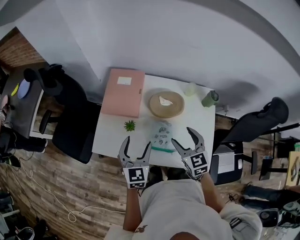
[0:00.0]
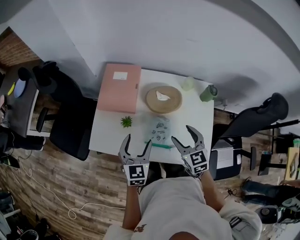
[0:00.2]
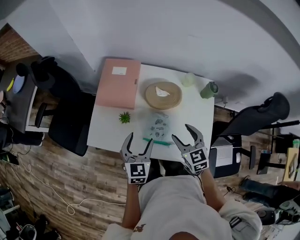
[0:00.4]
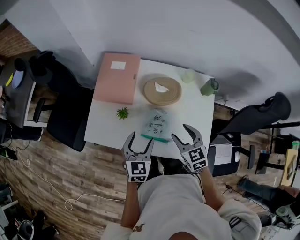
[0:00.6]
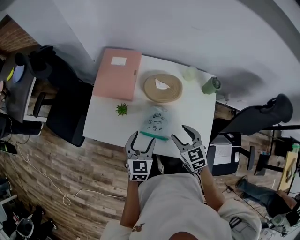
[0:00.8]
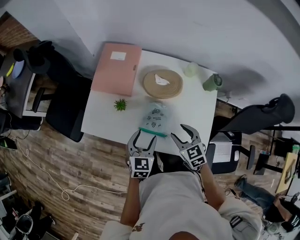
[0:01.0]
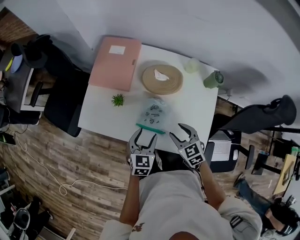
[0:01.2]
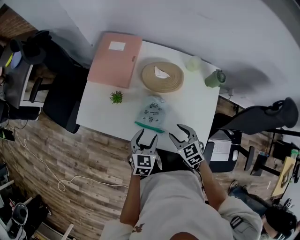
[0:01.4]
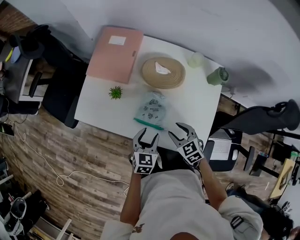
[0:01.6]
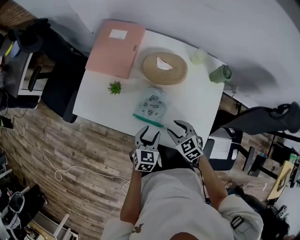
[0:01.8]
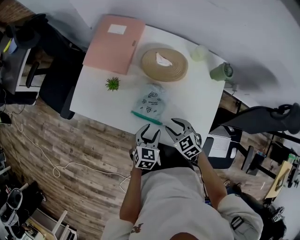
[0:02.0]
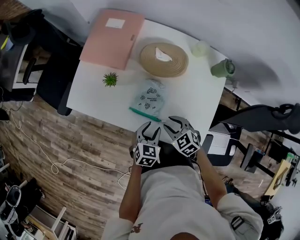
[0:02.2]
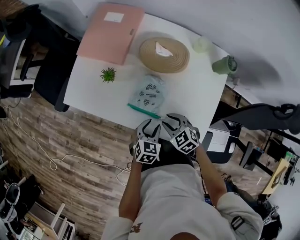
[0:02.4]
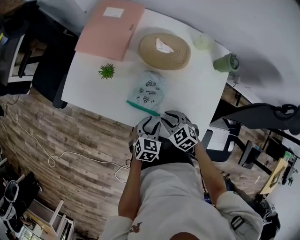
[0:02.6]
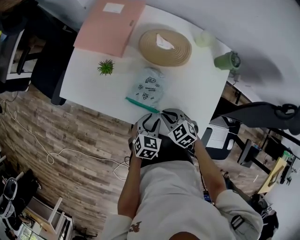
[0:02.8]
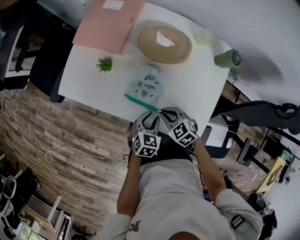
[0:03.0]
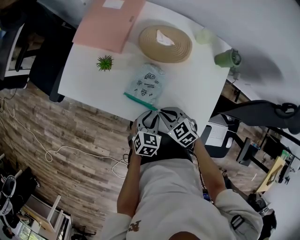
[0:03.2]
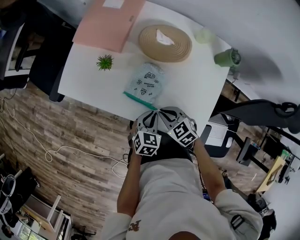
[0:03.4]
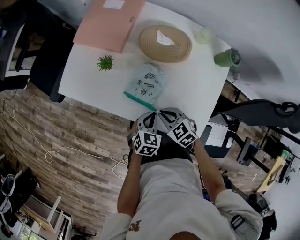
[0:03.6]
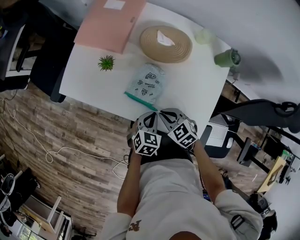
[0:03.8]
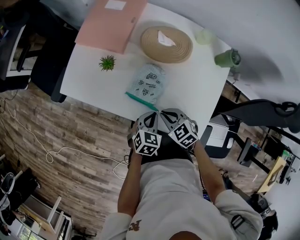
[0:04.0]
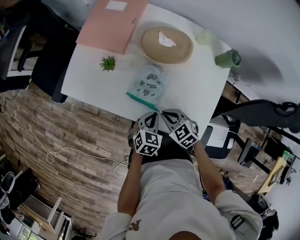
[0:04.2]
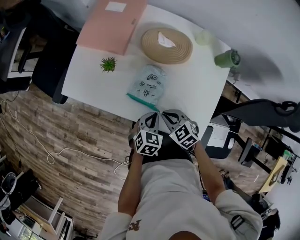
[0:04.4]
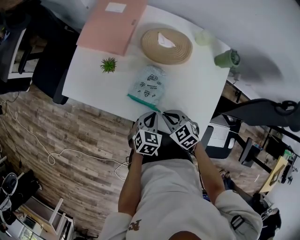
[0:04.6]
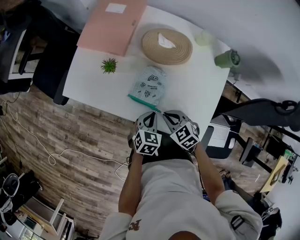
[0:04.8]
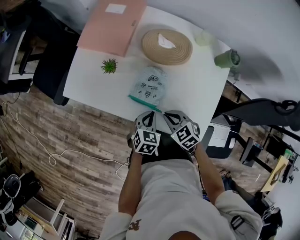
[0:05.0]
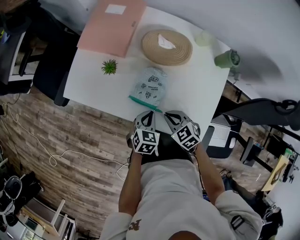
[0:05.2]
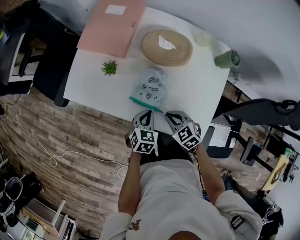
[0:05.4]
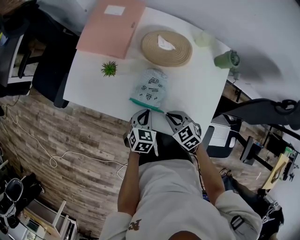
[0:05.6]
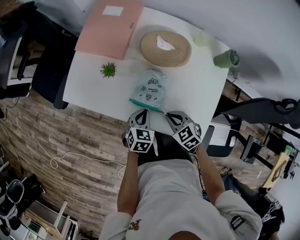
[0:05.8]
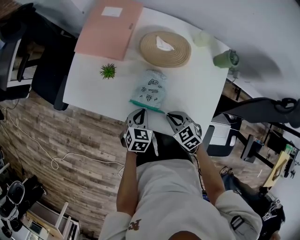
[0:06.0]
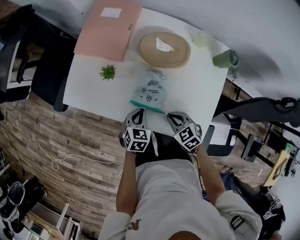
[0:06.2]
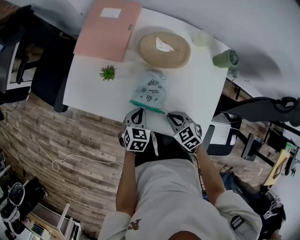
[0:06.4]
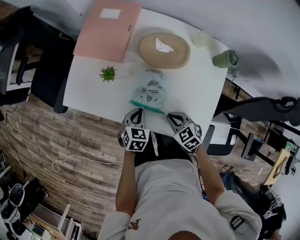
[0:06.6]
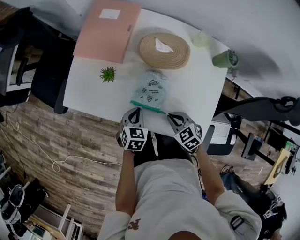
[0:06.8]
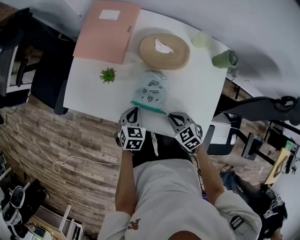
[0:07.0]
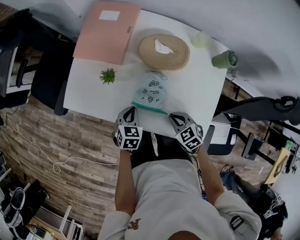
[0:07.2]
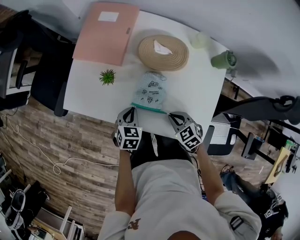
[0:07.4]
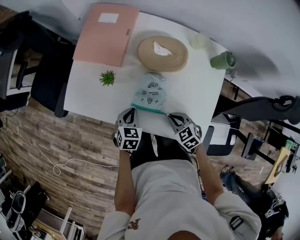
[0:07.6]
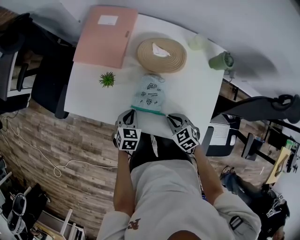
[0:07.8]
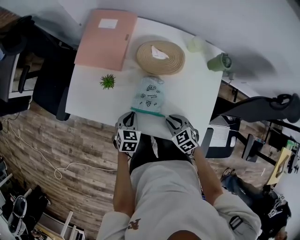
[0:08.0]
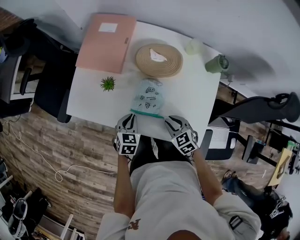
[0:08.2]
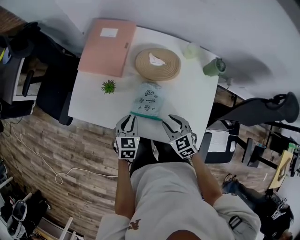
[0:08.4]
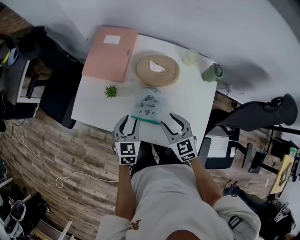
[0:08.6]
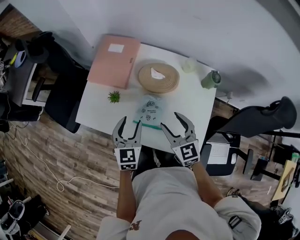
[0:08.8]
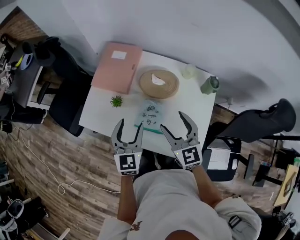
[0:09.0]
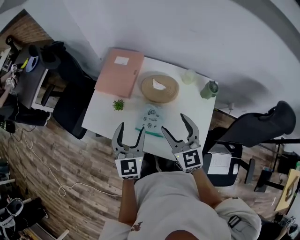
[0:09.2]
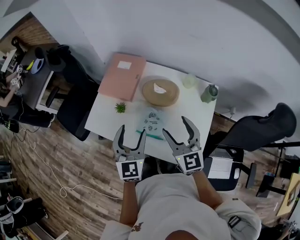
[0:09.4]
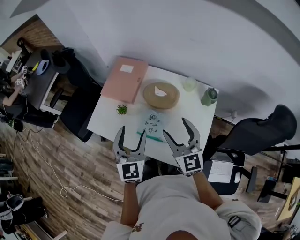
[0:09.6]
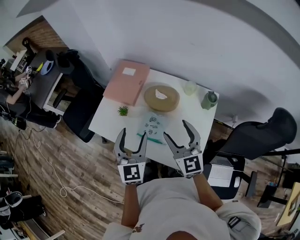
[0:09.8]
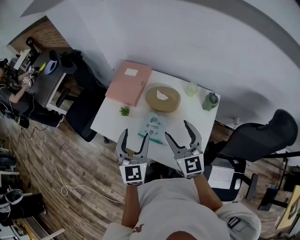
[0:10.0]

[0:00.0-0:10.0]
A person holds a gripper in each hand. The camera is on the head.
0:00.0 to 0:01.4: The left gripper shifts roughly 20 cm downward, to the right and backward, while the right gripper shifts approximately 15 cm downward and backward, and swivels about 30 degrees.
0:01.4 to 0:02.8: The right gripper moves downward, approximately 10 cm, rotates approximately 20 degrees, and closes its fingers, while the left gripper is displaced downward and to the right by approximately 10 cm.
0:02.8 to 0:04.2: The left gripper closes.
0:04.2 to 0:05.8: The left gripper moves about 5 cm.
0:05.8 to 0:07.2: The left gripper moves to the left, roughly 5 cm.
0:07.2 to 0:08.6: Both grippers travel together upward, approximately 10 cm. The right gripper rotates about 30 degrees, and opens up, while the left gripper opens.
0:08.6 to 0:10.0: Both grippers travel together upward, approximately 20 cm. The right gripper rotates roughly 30 degrees, and opens. The left gripper rotates approximately 30 degrees, and opens its fingers.

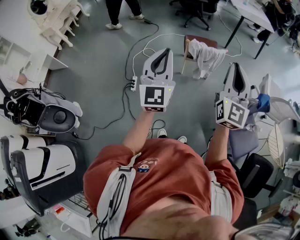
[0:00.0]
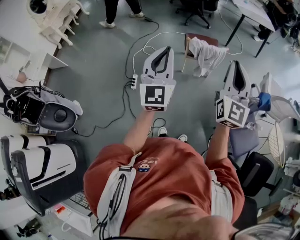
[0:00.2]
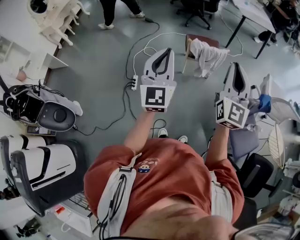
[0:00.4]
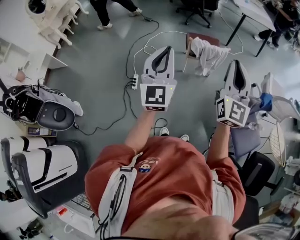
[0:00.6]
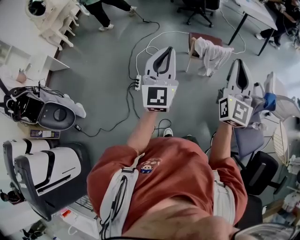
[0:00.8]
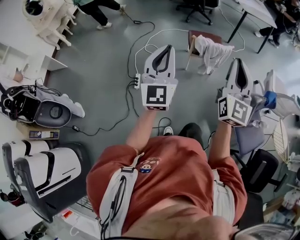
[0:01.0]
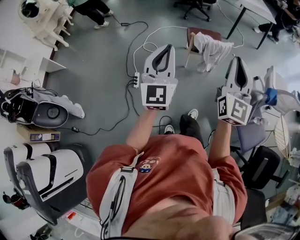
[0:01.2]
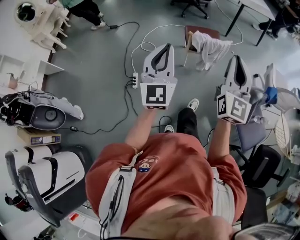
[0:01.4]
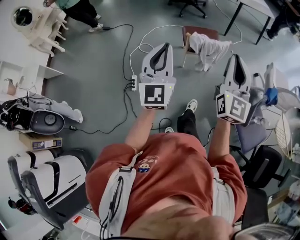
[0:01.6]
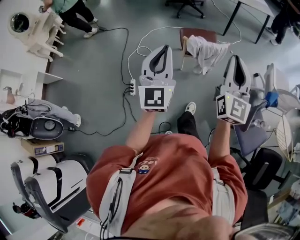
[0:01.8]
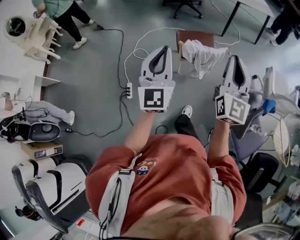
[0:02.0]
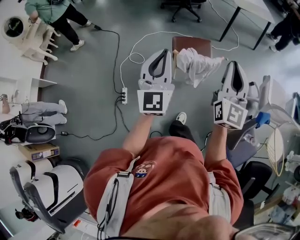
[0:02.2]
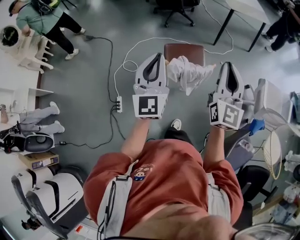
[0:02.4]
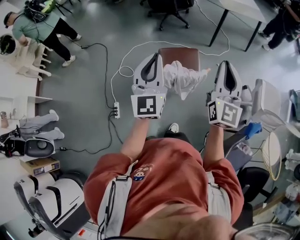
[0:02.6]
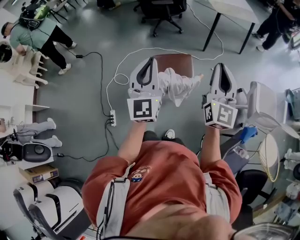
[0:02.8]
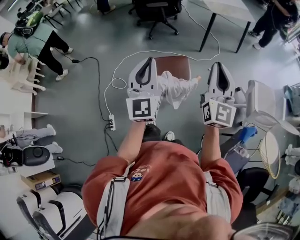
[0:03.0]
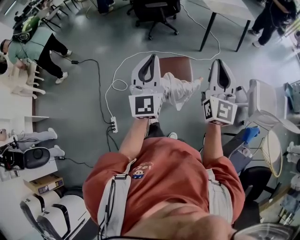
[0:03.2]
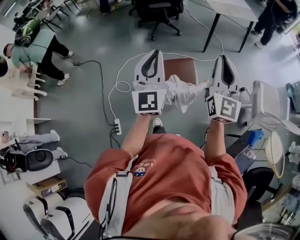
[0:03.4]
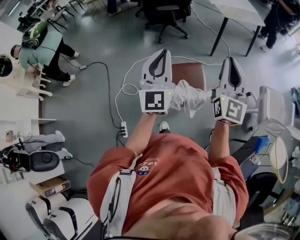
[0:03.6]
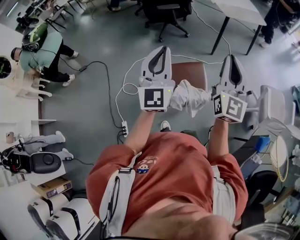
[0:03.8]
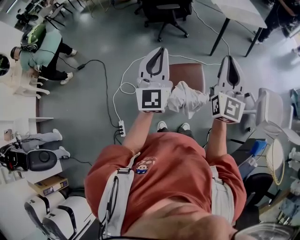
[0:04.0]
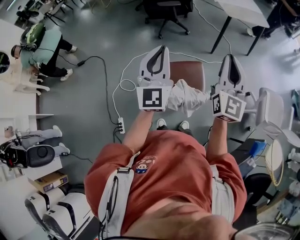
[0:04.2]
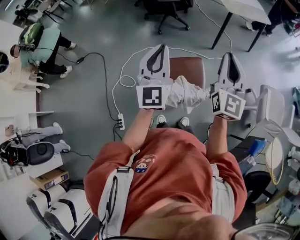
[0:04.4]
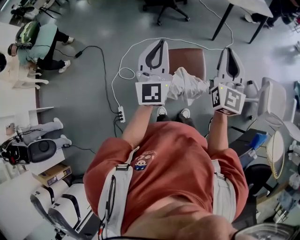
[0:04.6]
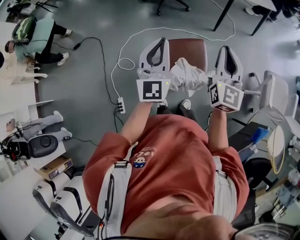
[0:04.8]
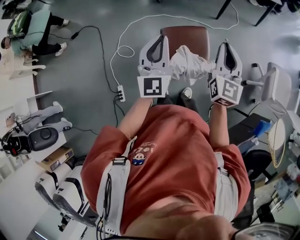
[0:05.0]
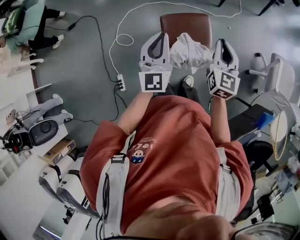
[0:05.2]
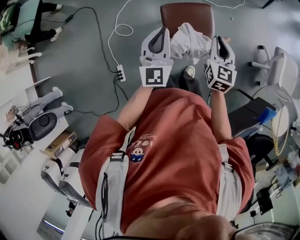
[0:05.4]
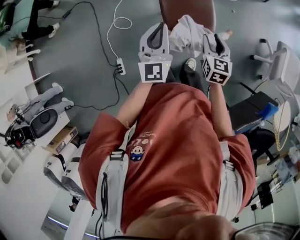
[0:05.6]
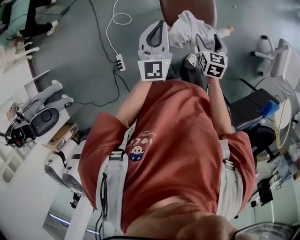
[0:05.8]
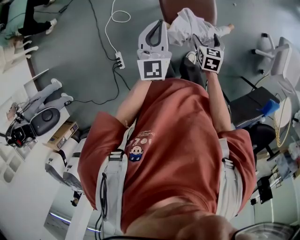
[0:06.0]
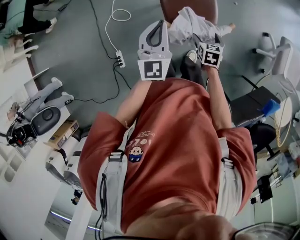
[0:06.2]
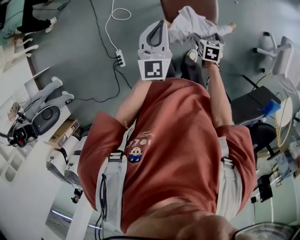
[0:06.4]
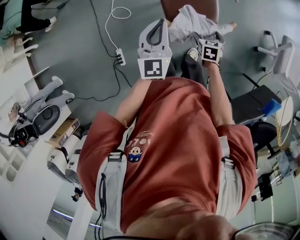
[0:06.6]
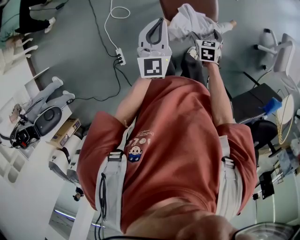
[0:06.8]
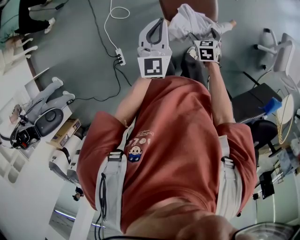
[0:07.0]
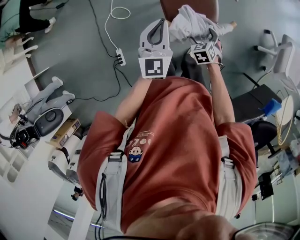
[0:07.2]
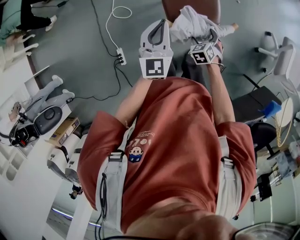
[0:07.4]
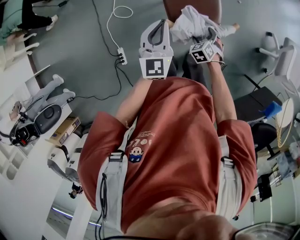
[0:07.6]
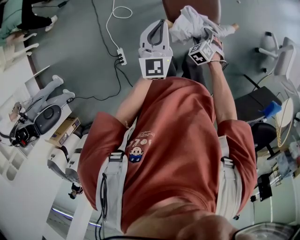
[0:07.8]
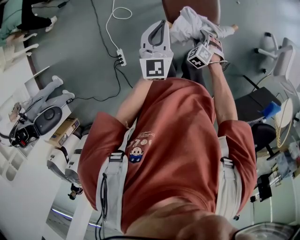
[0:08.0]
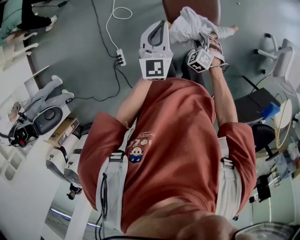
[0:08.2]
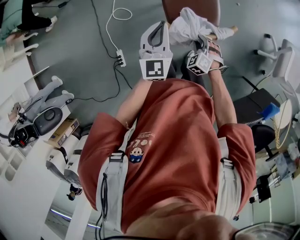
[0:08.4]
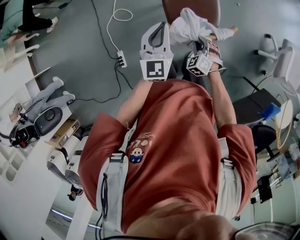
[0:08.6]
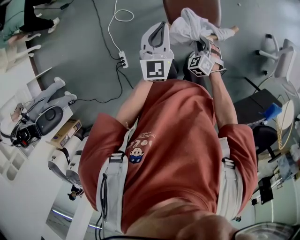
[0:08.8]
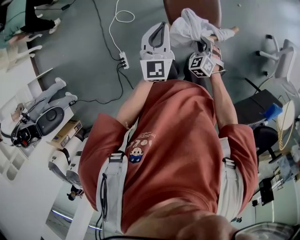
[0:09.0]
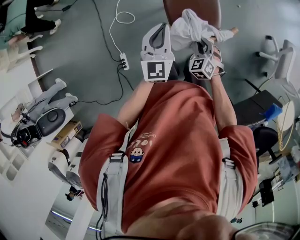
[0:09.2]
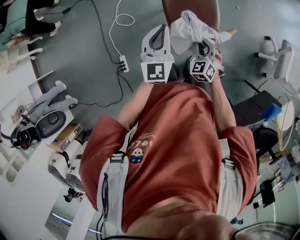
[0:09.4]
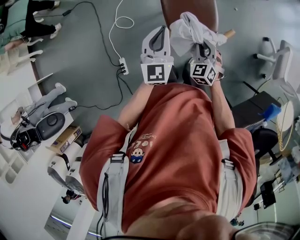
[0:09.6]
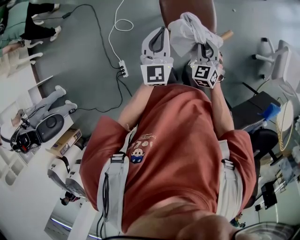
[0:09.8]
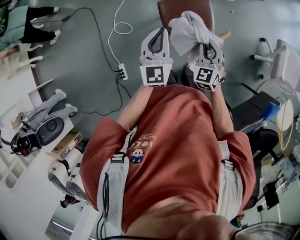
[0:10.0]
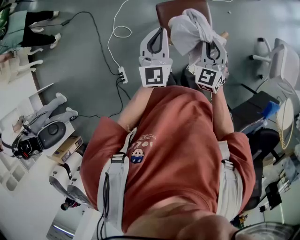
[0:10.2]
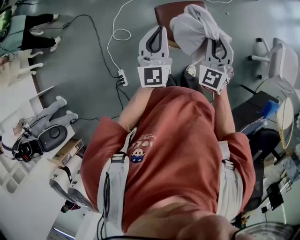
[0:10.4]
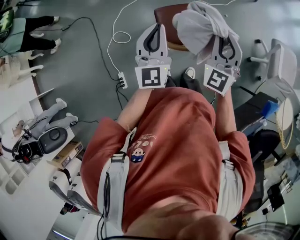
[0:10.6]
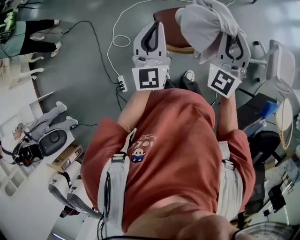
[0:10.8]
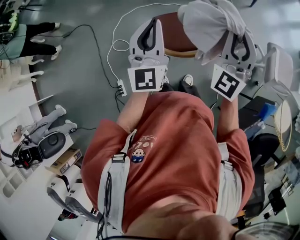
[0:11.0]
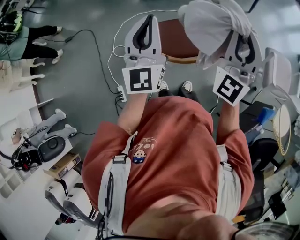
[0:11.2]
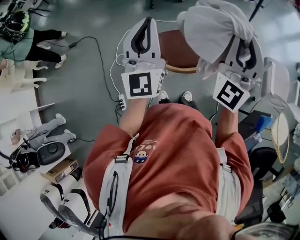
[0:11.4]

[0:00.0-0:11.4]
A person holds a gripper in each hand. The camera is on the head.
0:00.0 to 0:01.4: The right gripper travels to the left and forward by about 10 cm, while the left gripper moves forward and to the left, roughly 10 cm.
0:01.4 to 0:02.8: Both grippers move forward and to the right, about 40 cm.
0:02.8 to 0:04.2: The two grippers go roughly 20 cm forward and to the left.
0:04.2 to 0:05.6: The grippers both shift downward by about 30 cm. The left gripper turns by some 20 degrees, while the right gripper angles its fingers downward, by about 40 degrees.
0:05.6 to 0:07.2: The right gripper shifts about 20 cm downward, turns by approximately 40 degrees, and opens.
0:07.2 to 0:08.6: The right gripper changes its angle by about 30 degrees, and closes its fingers.
0:08.6 to 0:10.0: The right gripper is displaced upward by approximately 15 cm, and turns by approximately 40 degrees.
0:10.0 to 0:11.4: The left gripper is displaced upward by about 25 cm, and rotates approximately 30 degrees, while the right gripper shifts some 40 cm upward, and tilts its fingers some 50 degrees upward.

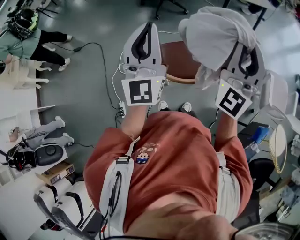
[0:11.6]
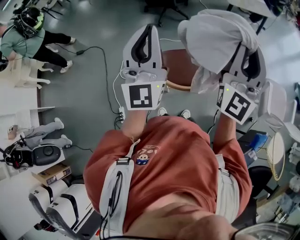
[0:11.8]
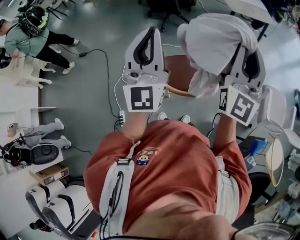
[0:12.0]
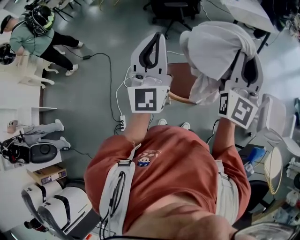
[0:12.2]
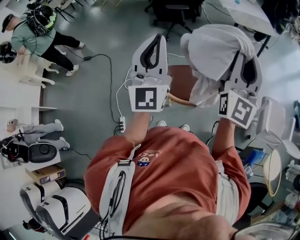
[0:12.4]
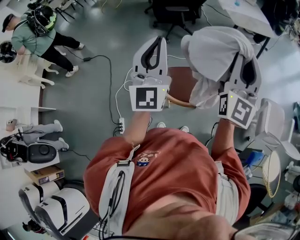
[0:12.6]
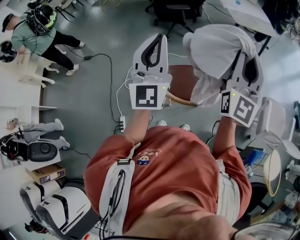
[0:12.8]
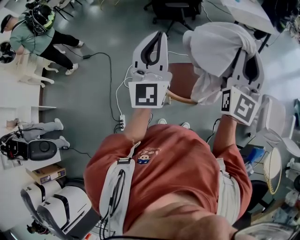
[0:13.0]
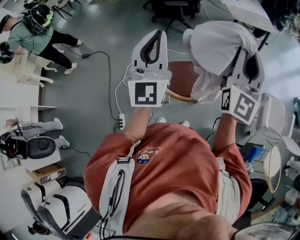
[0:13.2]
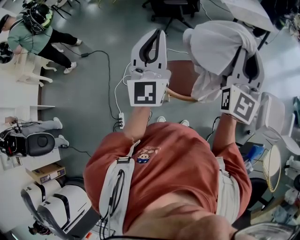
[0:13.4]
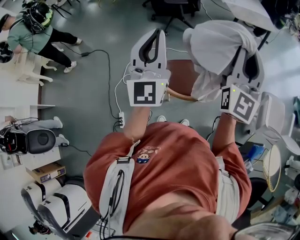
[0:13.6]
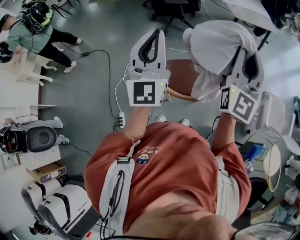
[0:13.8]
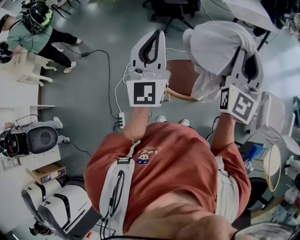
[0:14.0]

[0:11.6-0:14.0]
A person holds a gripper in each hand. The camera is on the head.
0:11.6 to 0:12.8: The right gripper changes its angle by approximately 20 degrees.
0:12.8 to 0:14.0: Both grippers stay about where they are.
